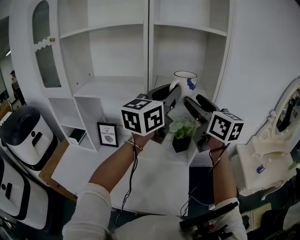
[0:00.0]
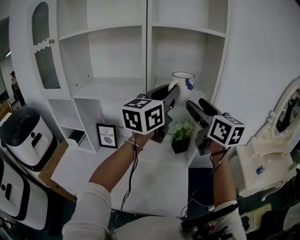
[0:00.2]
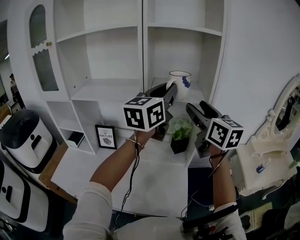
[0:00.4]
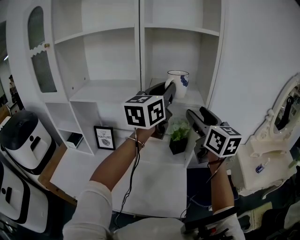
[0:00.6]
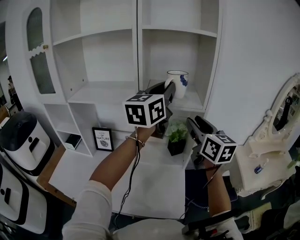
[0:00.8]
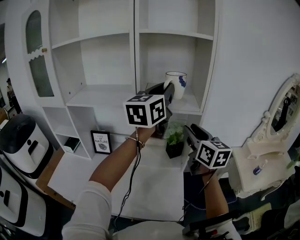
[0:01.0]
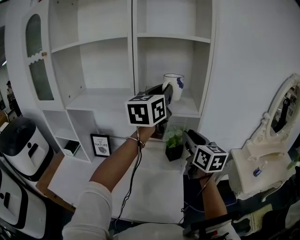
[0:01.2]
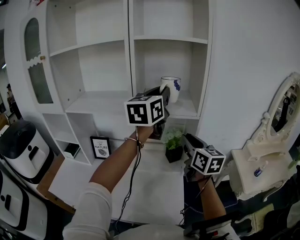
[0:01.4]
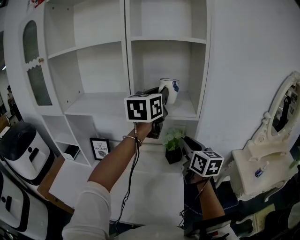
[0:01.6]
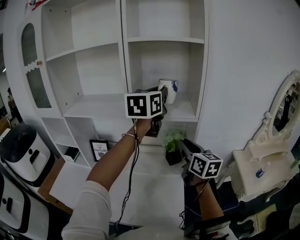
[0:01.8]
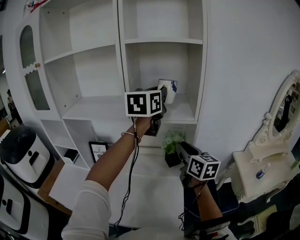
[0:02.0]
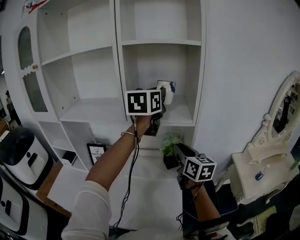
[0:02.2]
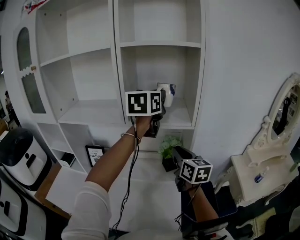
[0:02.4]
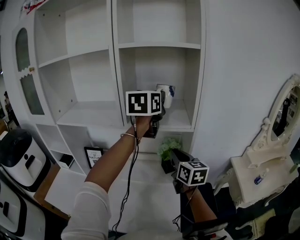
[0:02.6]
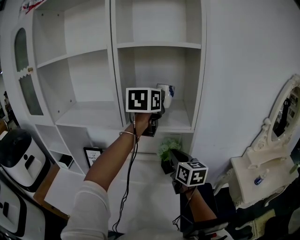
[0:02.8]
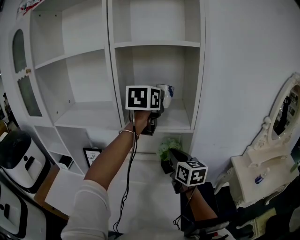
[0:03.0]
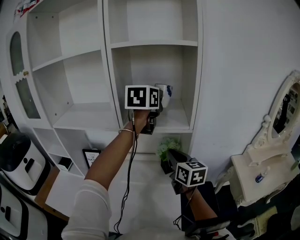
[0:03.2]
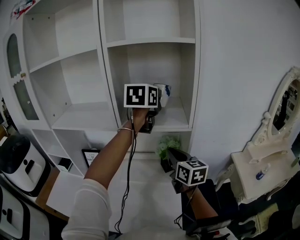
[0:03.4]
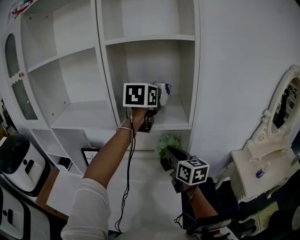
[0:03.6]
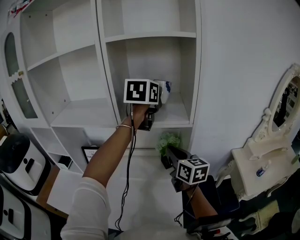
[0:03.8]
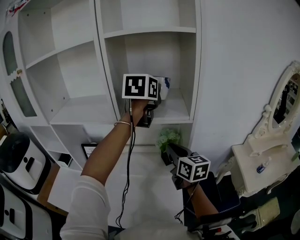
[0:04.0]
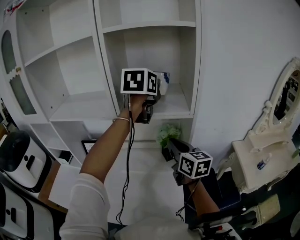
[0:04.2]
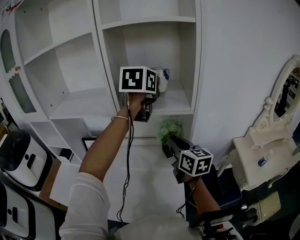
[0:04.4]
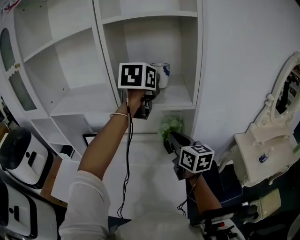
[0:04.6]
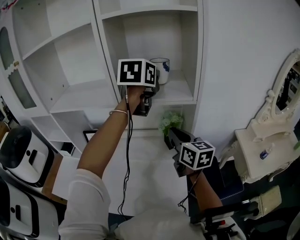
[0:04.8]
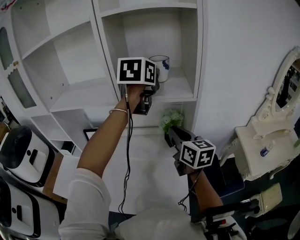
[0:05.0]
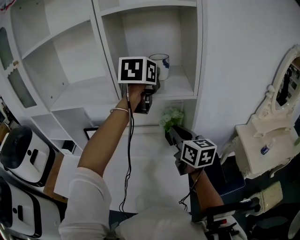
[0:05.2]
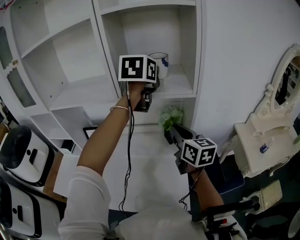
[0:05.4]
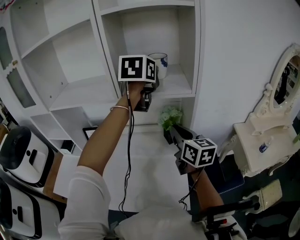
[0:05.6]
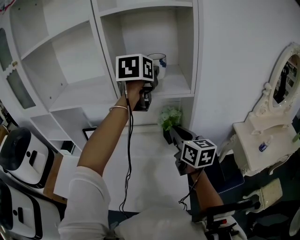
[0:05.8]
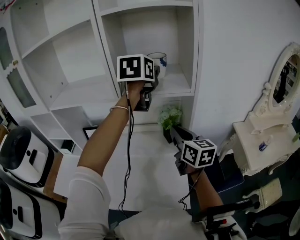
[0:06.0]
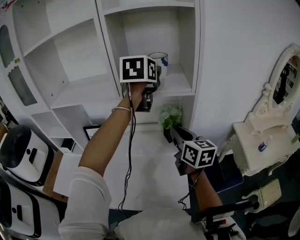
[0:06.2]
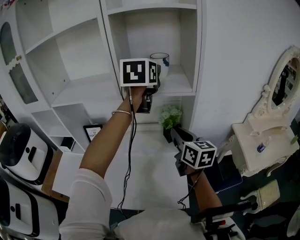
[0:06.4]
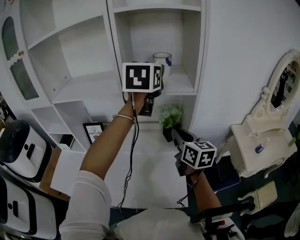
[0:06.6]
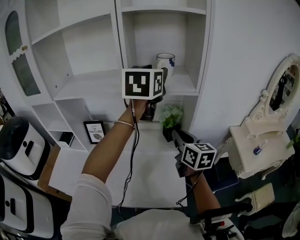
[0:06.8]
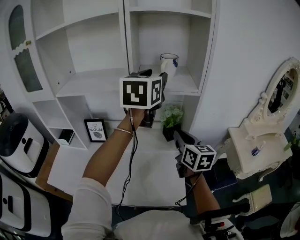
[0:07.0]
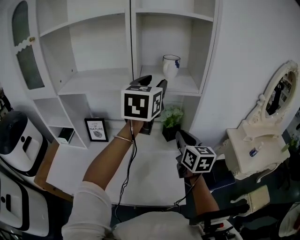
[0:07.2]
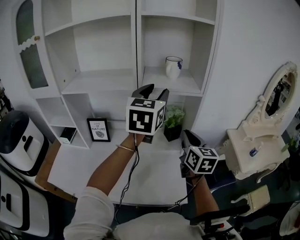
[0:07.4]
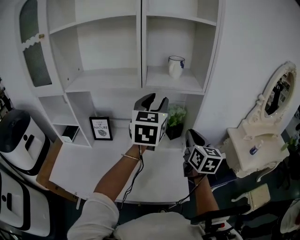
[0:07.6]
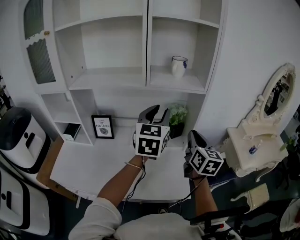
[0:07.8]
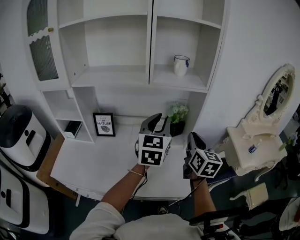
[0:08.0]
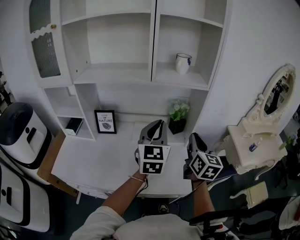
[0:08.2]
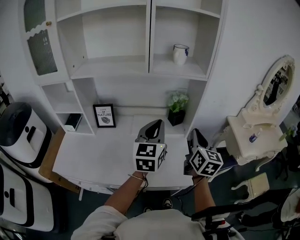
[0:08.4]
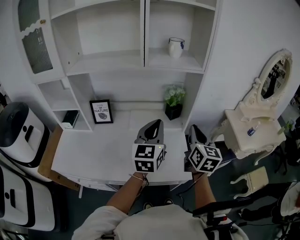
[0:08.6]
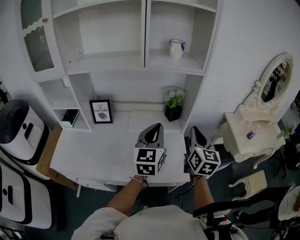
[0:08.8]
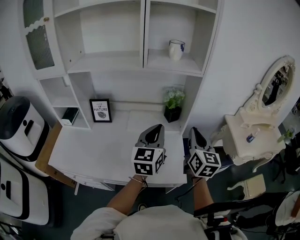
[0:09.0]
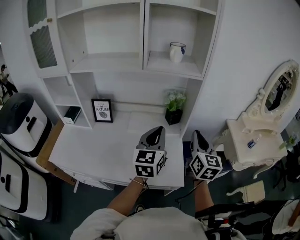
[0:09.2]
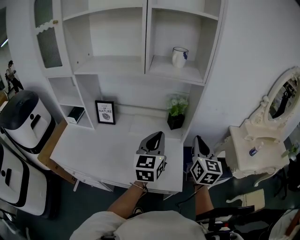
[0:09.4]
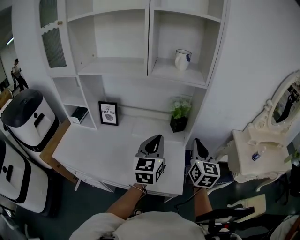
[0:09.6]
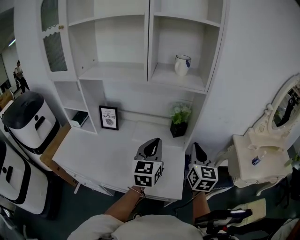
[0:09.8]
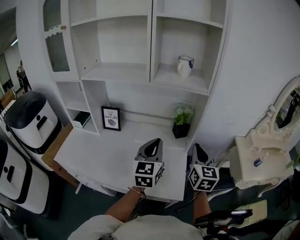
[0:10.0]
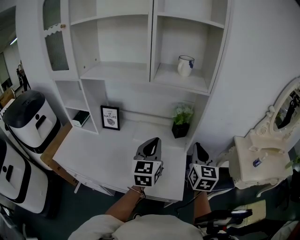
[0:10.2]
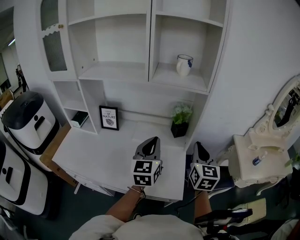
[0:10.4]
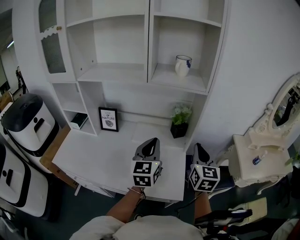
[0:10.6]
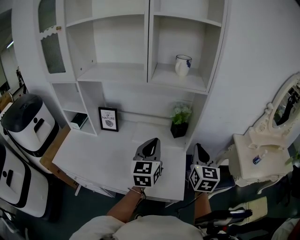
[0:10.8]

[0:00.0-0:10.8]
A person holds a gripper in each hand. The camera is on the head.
0.0 to 1.6 s: The right gripper goes approximately 15 cm downward, and closes its fingers; the left gripper travels forward by roughly 10 cm.
1.6 to 3.0 s: The left gripper is displaced forward by about 10 cm. The right gripper shifts approximately 5 cm forward.
3.0 to 4.6 s: The grippers make only small movements.
4.6 to 6.2 s: The left gripper opens its fingers.
6.2 to 7.8 s: The right gripper travels backward by some 10 cm, and changes its angle by roughly 20 degrees, while the left gripper moves backward and downward, approximately 20 cm.
7.8 to 9.2 s: The left gripper shifts approximately 15 cm downward and backward, and closes its fingers. Meanwhile the right gripper moves backward, about 5 cm.
9.2 to 10.8 s: The grippers move only a little.

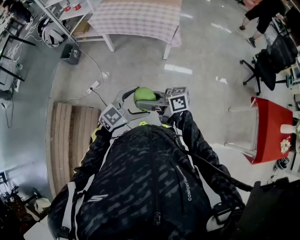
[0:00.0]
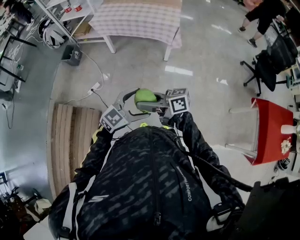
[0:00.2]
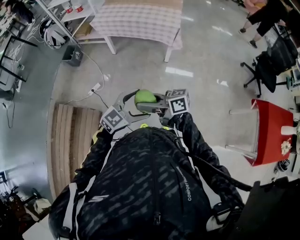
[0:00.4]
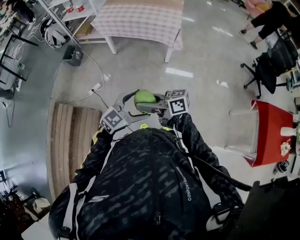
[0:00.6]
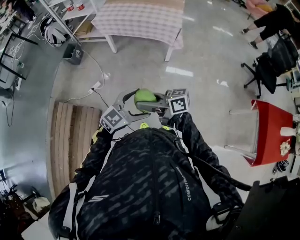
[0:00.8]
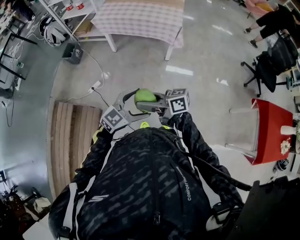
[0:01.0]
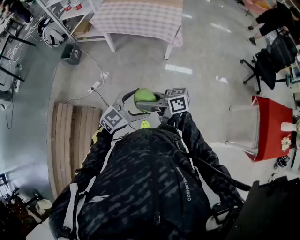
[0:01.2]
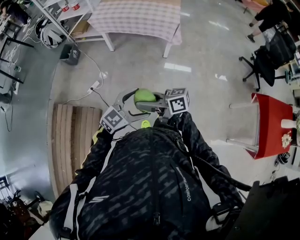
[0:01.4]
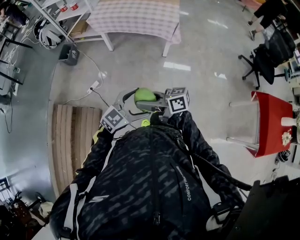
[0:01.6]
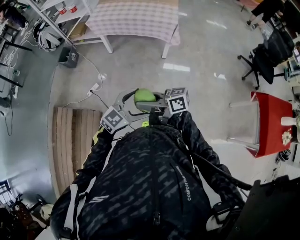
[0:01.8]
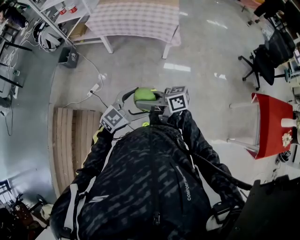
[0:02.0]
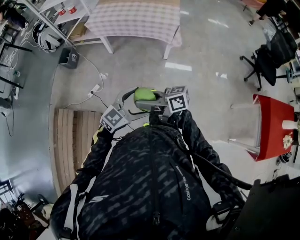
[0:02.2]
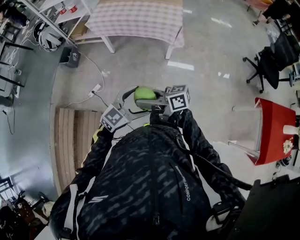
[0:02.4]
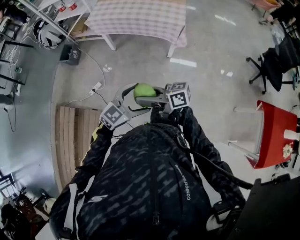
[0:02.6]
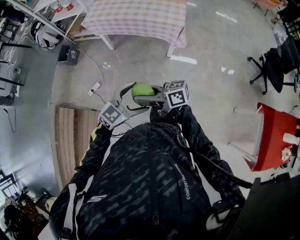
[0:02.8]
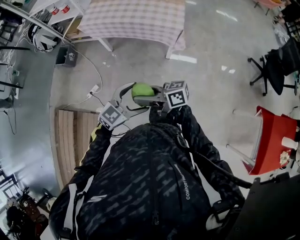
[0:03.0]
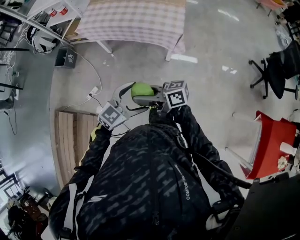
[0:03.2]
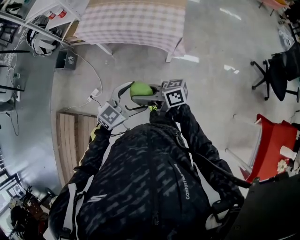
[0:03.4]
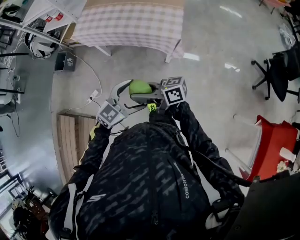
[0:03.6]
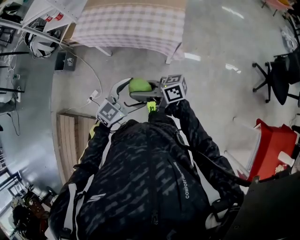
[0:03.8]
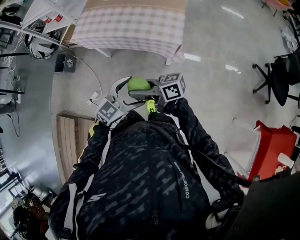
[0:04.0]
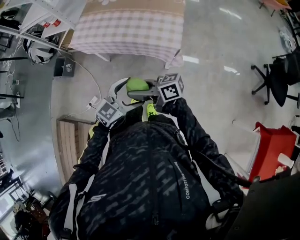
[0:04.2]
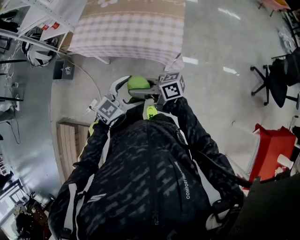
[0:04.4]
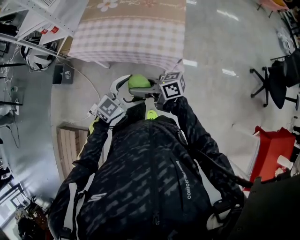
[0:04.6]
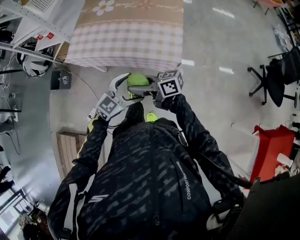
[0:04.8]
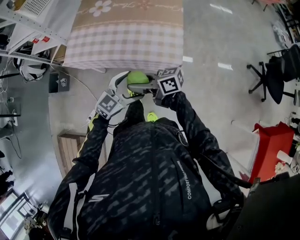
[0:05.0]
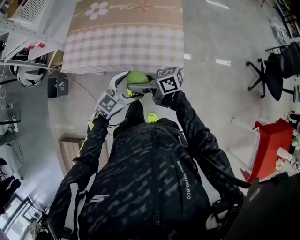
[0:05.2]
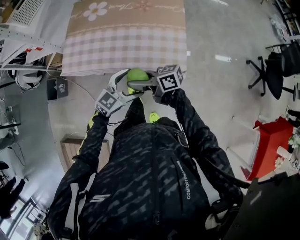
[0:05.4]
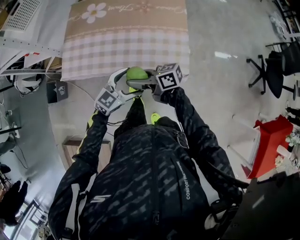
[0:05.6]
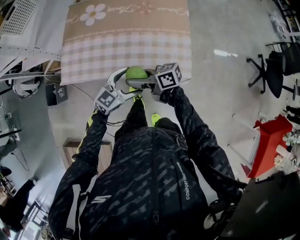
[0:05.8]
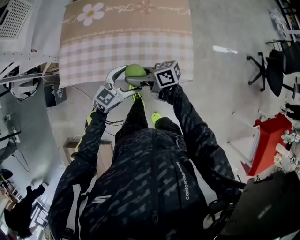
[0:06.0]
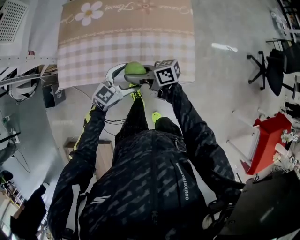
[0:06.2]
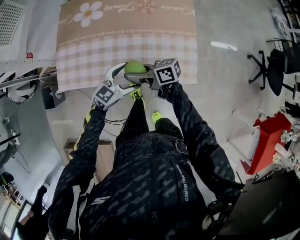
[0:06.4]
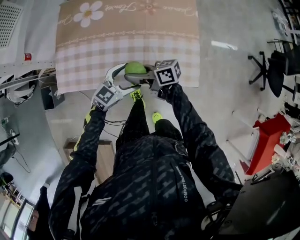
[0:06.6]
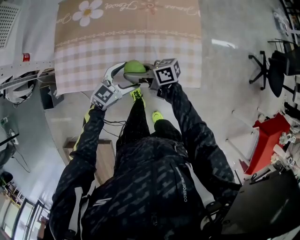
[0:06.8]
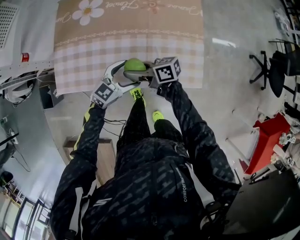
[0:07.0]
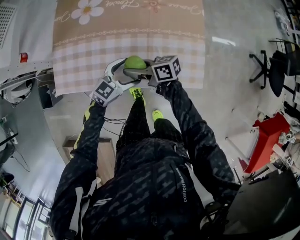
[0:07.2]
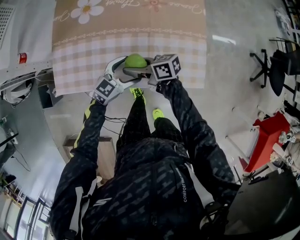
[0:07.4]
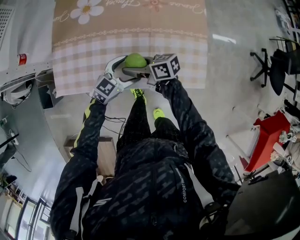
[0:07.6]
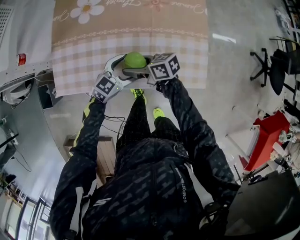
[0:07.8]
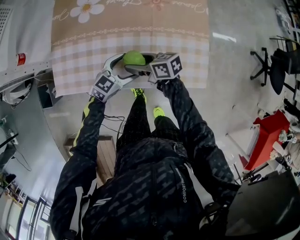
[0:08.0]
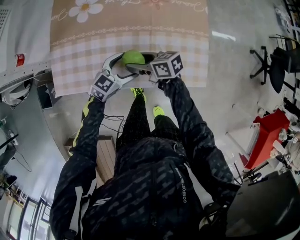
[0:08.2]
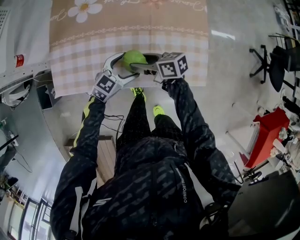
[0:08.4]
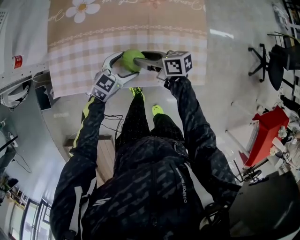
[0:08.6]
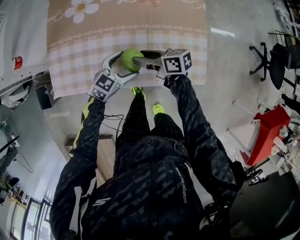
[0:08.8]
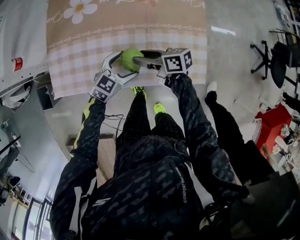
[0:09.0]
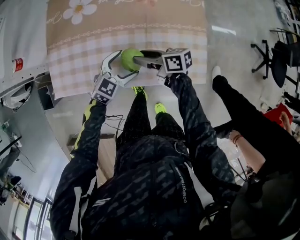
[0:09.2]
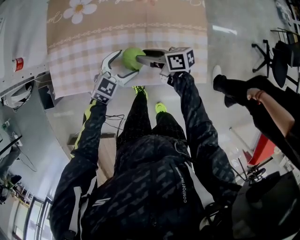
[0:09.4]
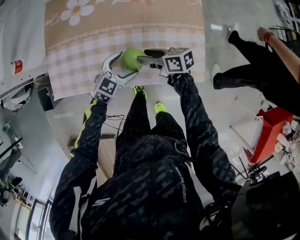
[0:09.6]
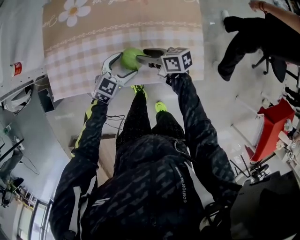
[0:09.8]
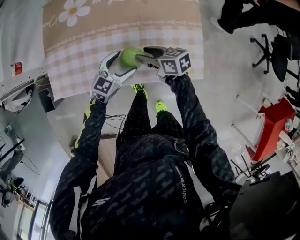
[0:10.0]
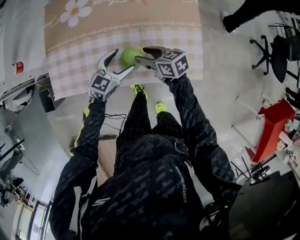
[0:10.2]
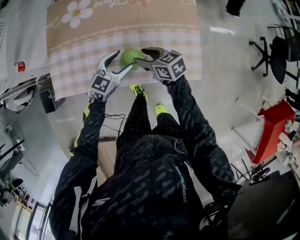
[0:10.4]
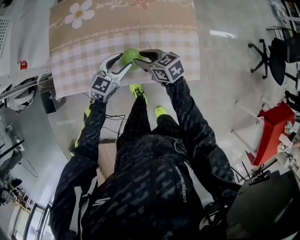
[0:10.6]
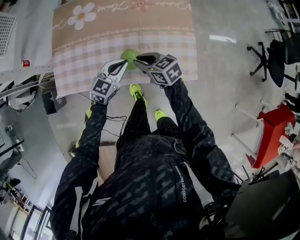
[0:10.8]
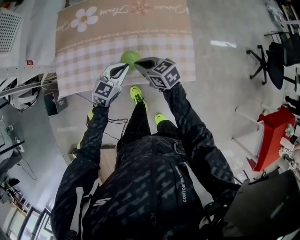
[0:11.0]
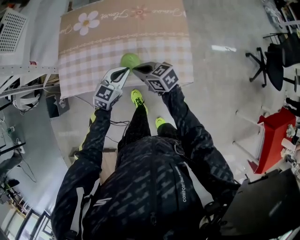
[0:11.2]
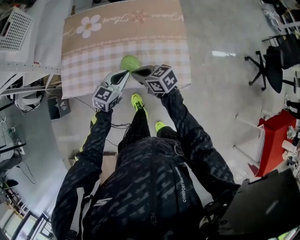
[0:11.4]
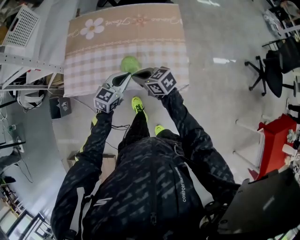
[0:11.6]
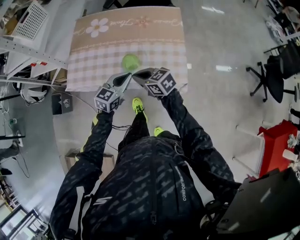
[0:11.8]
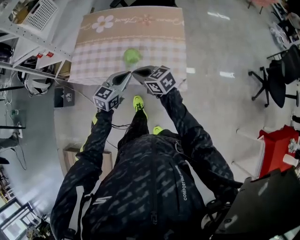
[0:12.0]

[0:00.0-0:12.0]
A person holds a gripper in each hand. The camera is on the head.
0.0 to 1.6 s: The grippers make only small movements.
1.6 to 3.0 s: The left gripper ends up roughly 20 cm from where it was. The right gripper moves approximately 20 cm.
3.0 to 4.4 s: The left gripper changes place by some 25 cm, while the right gripper shifts by some 25 cm.
4.4 to 6.0 s: The right gripper changes place by roughly 30 cm, while the left gripper changes place by about 30 cm.
6.0 to 7.6 s: The right gripper ends up approximately 15 cm from where it was; the left gripper moves roughly 15 cm.
7.6 to 9.0 s: The right gripper ends up some 5 cm from where it was.
9.0 to 10.4 s: The right gripper changes its angle by roughly 30 degrees.
10.4 to 12.0 s: The two grippers go about 20 cm backward and upward. The right gripper closes its fingers, while the left gripper closes its fingers.

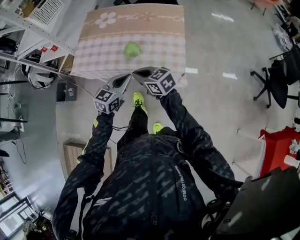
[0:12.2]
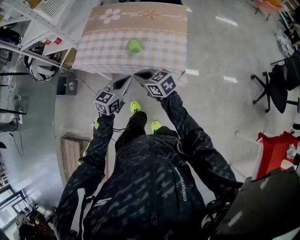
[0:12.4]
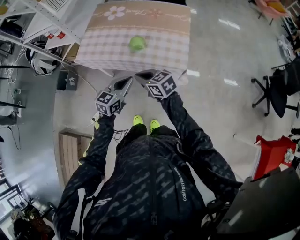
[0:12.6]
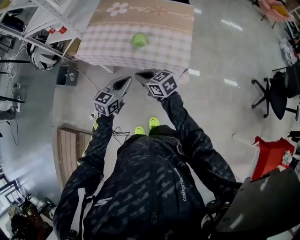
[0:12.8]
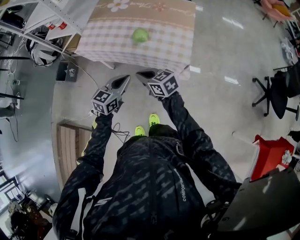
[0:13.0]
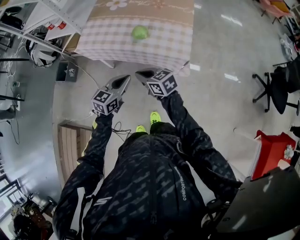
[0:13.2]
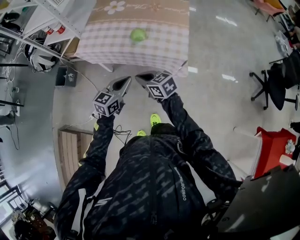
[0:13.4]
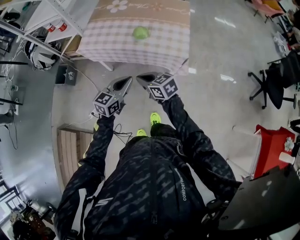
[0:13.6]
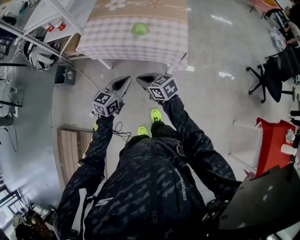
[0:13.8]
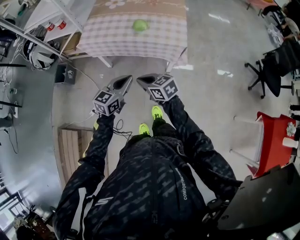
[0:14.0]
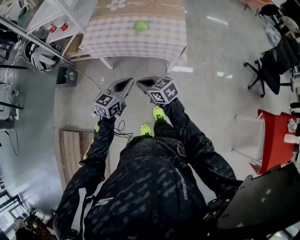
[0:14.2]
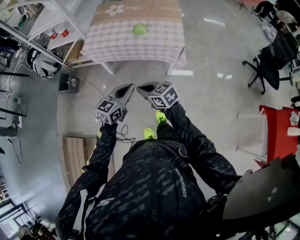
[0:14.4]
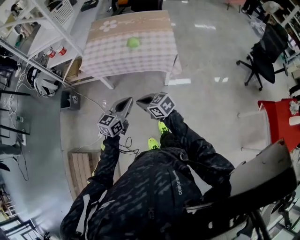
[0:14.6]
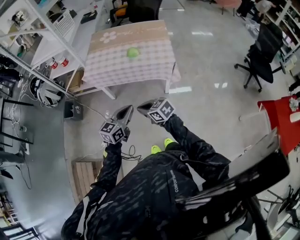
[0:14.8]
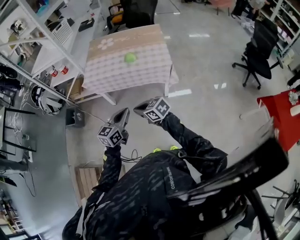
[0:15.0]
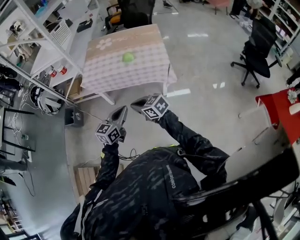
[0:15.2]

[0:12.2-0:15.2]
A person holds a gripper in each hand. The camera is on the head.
12.2 to 13.8 s: The grippers both shift backward and to the left by about 20 cm.
13.8 to 15.2 s: The grippers both shift backward, upward and to the left by some 15 cm.
